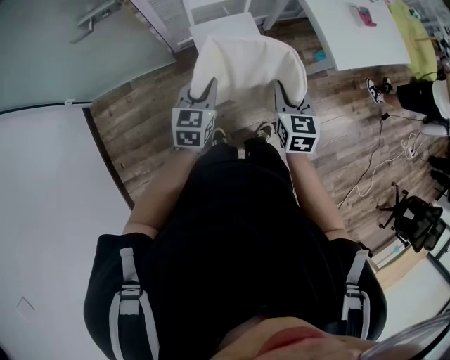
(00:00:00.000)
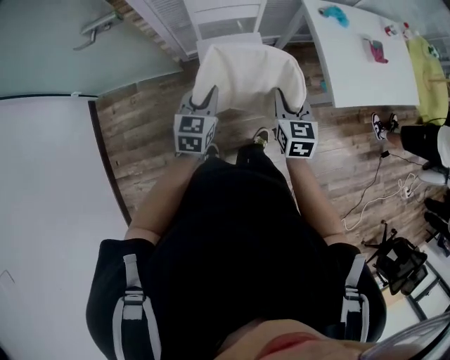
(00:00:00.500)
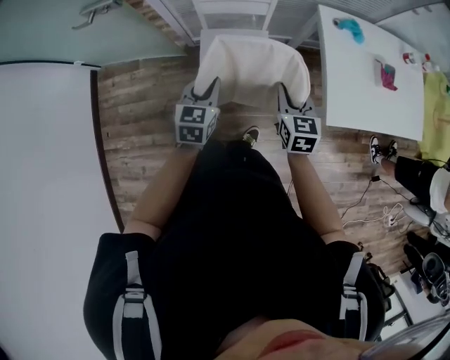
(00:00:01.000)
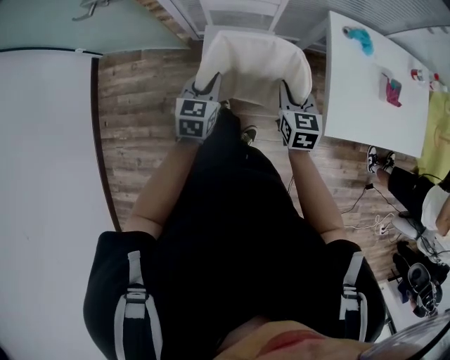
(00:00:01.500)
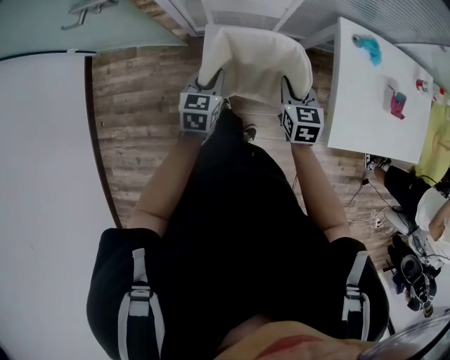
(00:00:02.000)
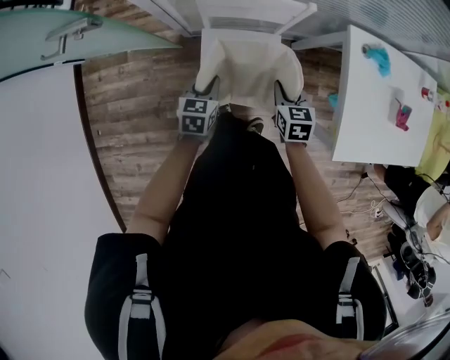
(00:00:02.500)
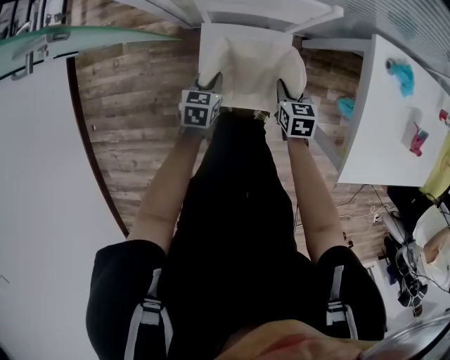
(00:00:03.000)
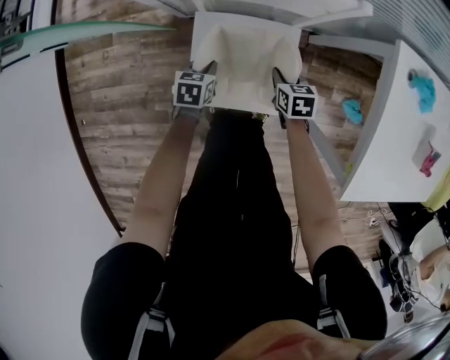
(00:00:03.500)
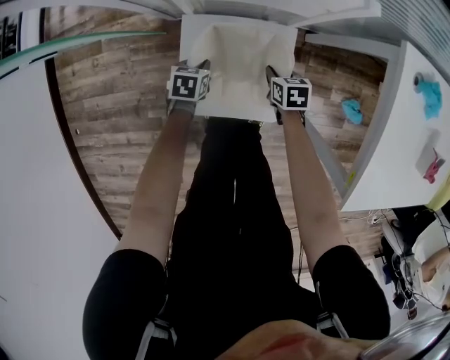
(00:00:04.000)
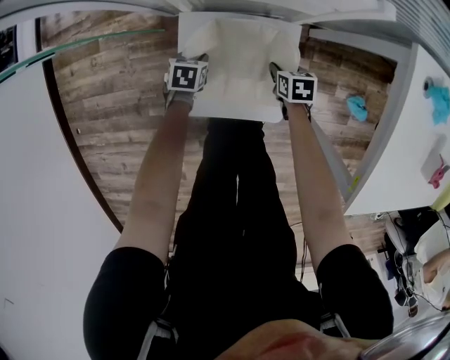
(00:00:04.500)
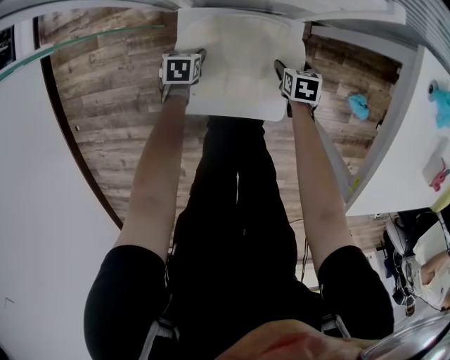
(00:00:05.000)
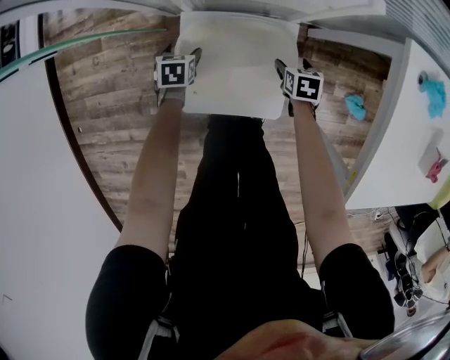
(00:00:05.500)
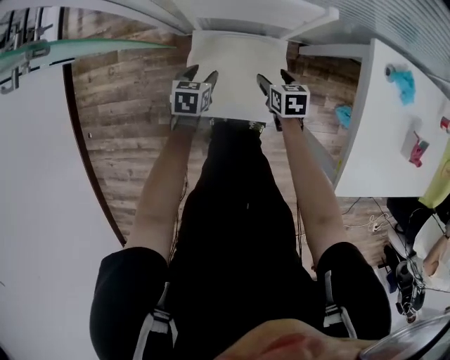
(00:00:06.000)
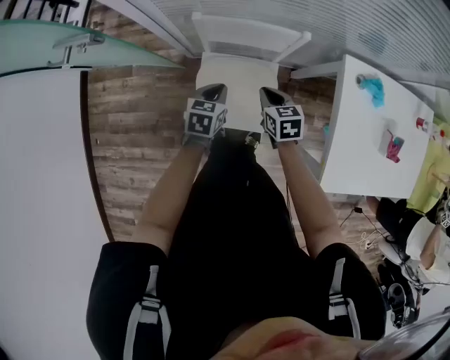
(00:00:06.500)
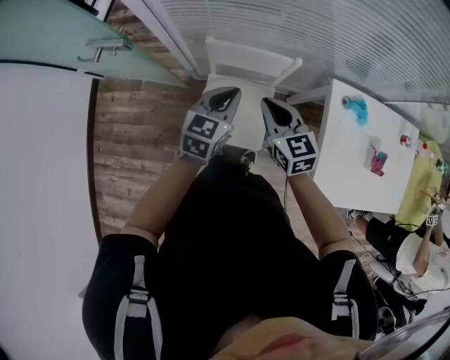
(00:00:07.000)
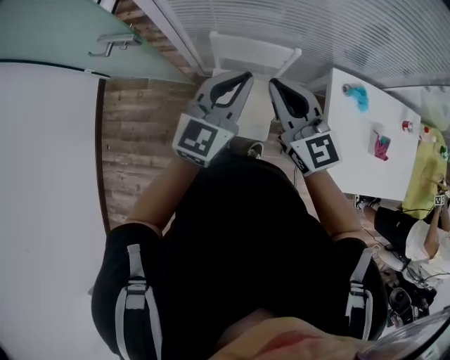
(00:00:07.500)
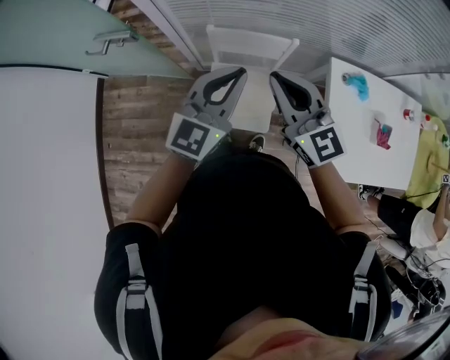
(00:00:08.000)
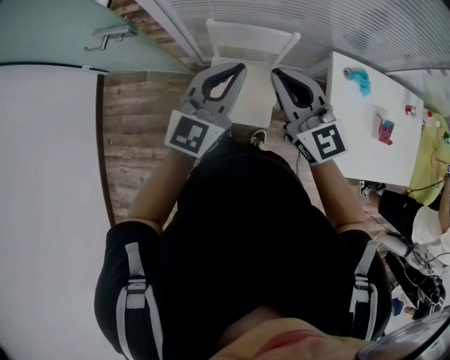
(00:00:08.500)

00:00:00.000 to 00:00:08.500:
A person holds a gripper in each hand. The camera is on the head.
00:00:00.000 to 00:00:02.000: Both grippers travel together forward, downward and to the right, some 30 cm. The left gripper turns by roughly 20 degrees; the right gripper turns by about 20 degrees.
00:00:02.000 to 00:00:04.000: The two grippers go some 40 cm downward. The right gripper swivels approximately 30 degrees. Meanwhile the left gripper rotates about 30 degrees.
00:00:04.000 to 00:00:06.500: Both grippers move upward, approximately 35 cm. The right gripper opens, then closes again. The left gripper opens, then closes once more.
00:00:06.500 to 00:00:08.500: Both grippers travel together upward, roughly 40 cm. The right gripper tilts its fingers some 40 degrees upward. Meanwhile the left gripper points its fingers some 40 degrees further upward.

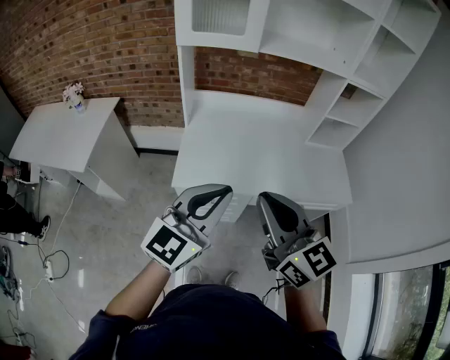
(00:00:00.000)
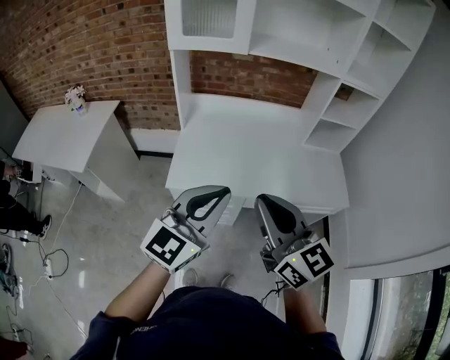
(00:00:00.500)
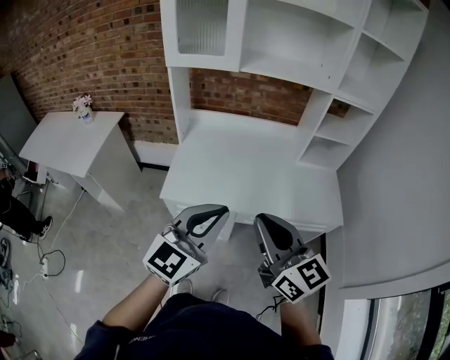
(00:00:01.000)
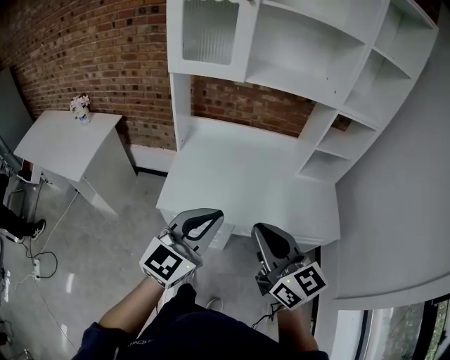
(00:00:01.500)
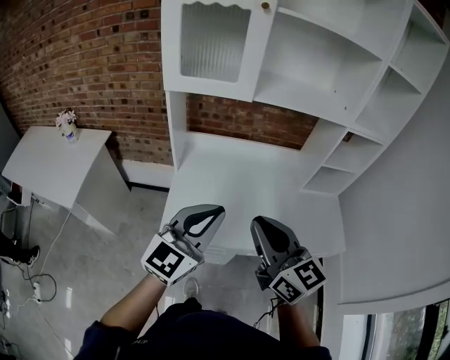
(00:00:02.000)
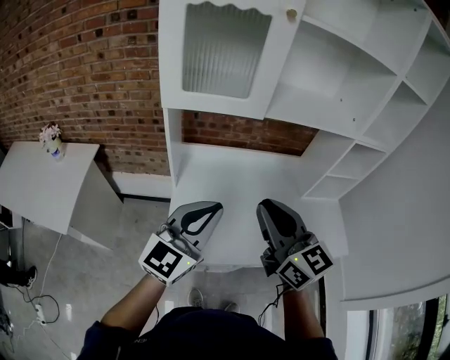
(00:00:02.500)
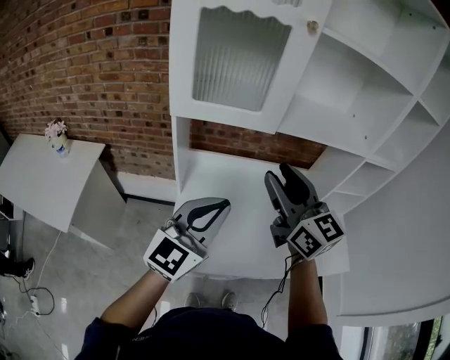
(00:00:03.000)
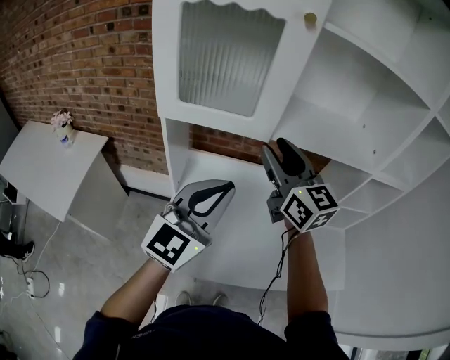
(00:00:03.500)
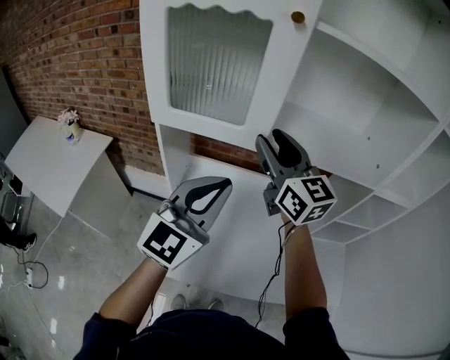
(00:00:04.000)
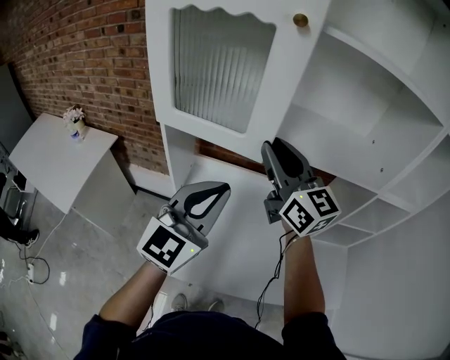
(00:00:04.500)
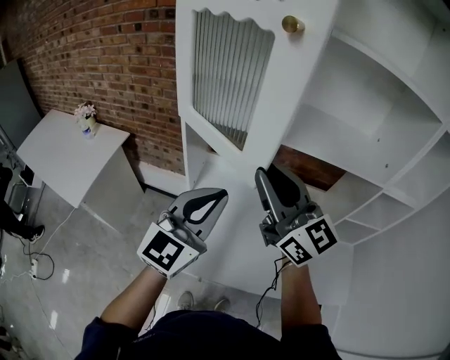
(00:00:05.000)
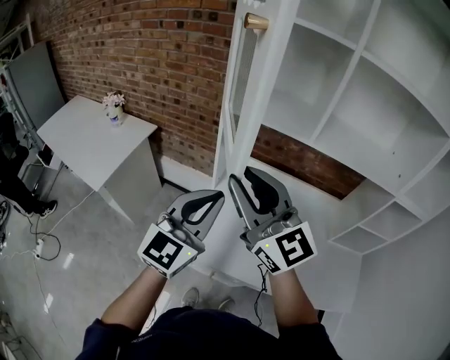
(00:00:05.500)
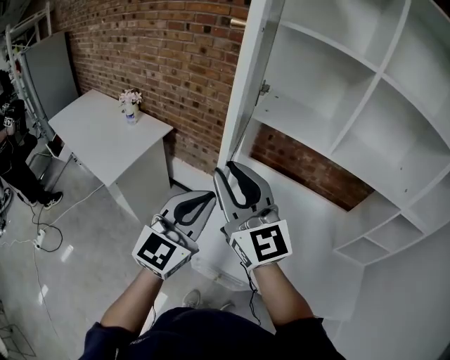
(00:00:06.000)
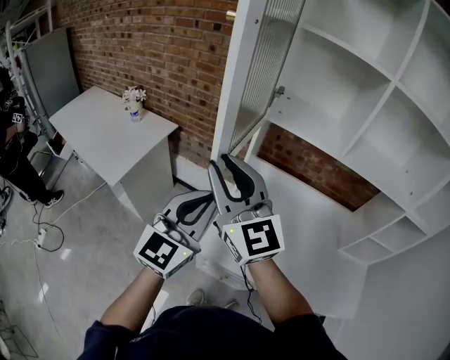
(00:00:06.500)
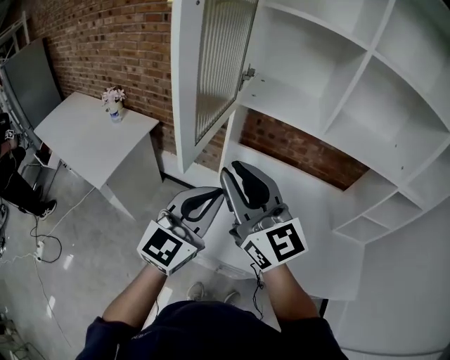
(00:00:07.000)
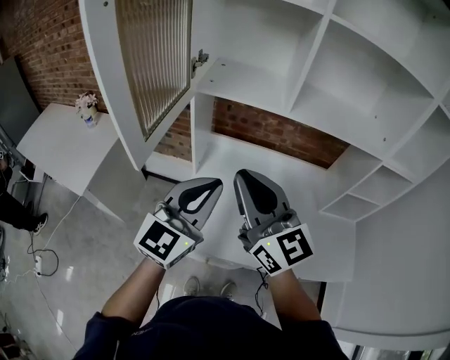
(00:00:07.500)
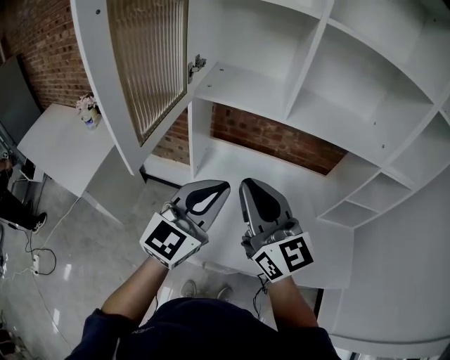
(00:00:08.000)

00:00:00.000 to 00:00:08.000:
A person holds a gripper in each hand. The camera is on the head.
00:00:00.000 to 00:00:02.000: Both grippers travel together forward, roughly 15 cm.
00:00:02.000 to 00:00:04.000: The left gripper is displaced forward by some 25 cm. The right gripper is displaced forward by roughly 35 cm, and opens its fingers.
00:00:04.000 to 00:00:06.000: Both grippers move to the left and backward, roughly 30 cm. The right gripper swivels about 20 degrees.
00:00:06.000 to 00:00:08.000: Both grippers travel together to the right, roughly 15 cm.

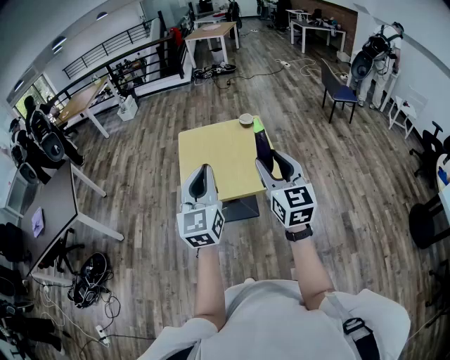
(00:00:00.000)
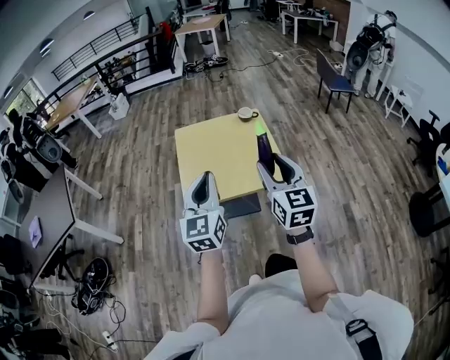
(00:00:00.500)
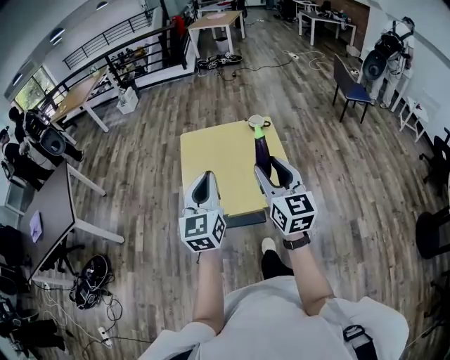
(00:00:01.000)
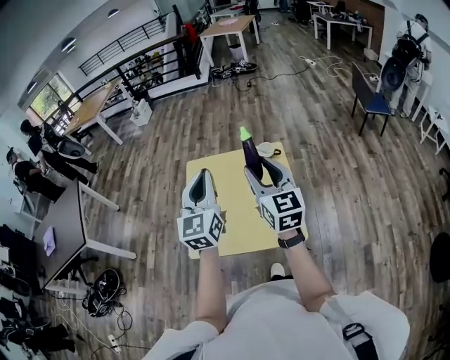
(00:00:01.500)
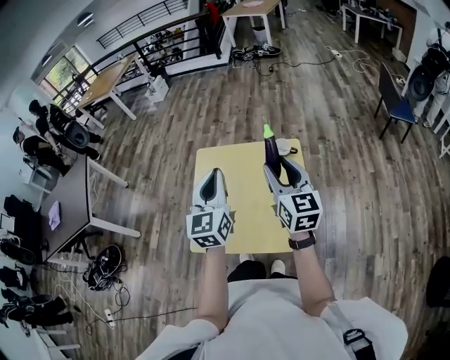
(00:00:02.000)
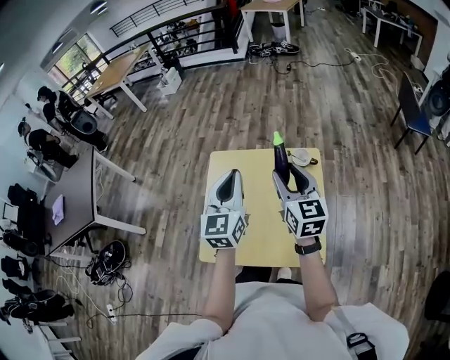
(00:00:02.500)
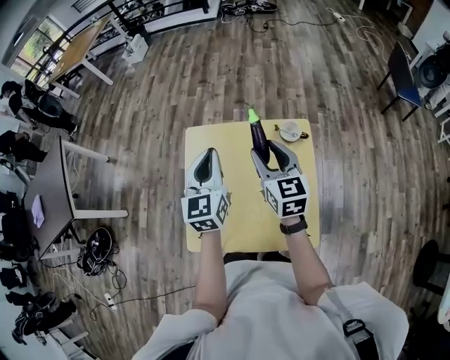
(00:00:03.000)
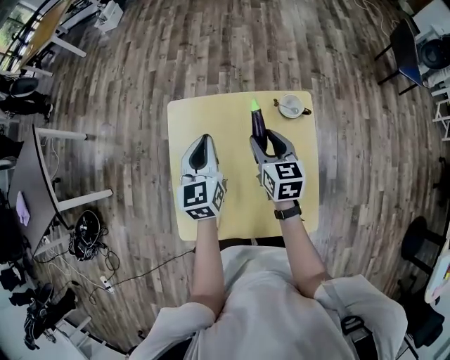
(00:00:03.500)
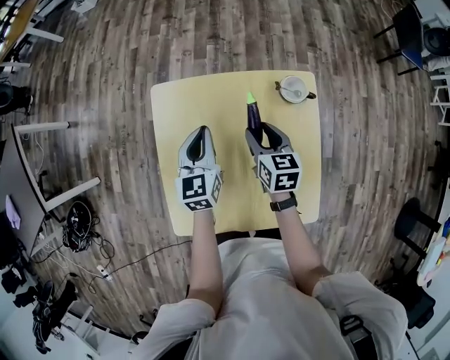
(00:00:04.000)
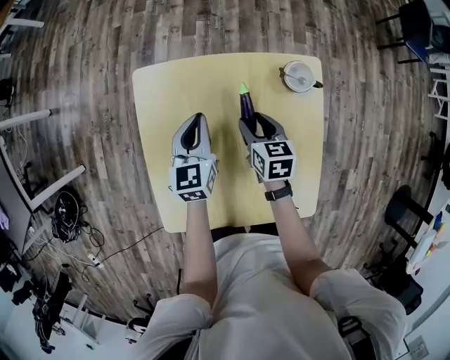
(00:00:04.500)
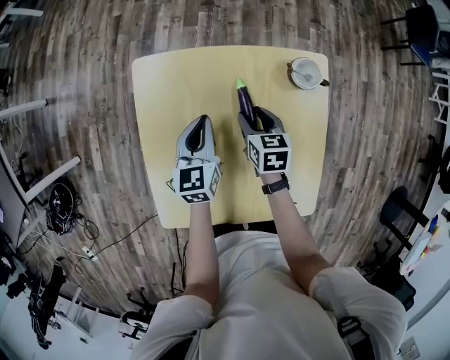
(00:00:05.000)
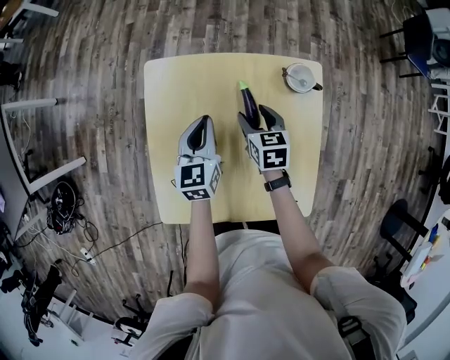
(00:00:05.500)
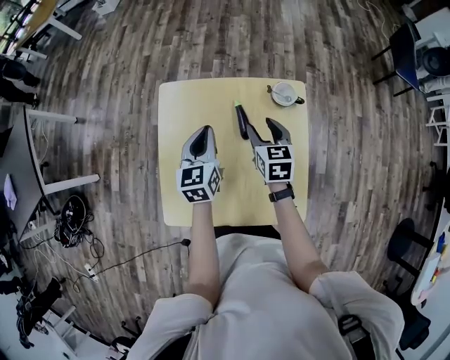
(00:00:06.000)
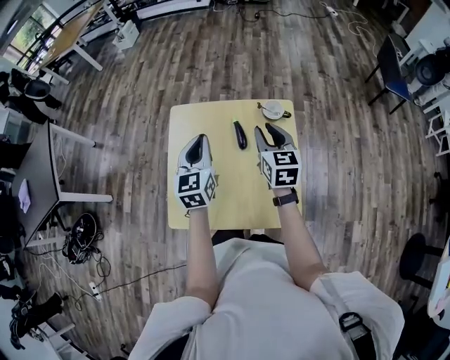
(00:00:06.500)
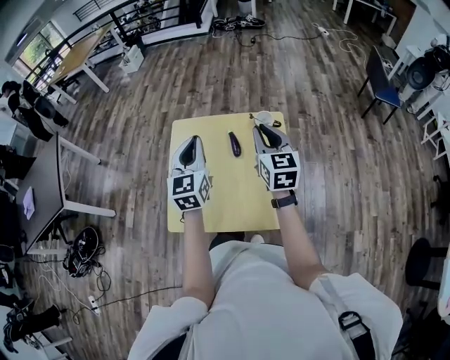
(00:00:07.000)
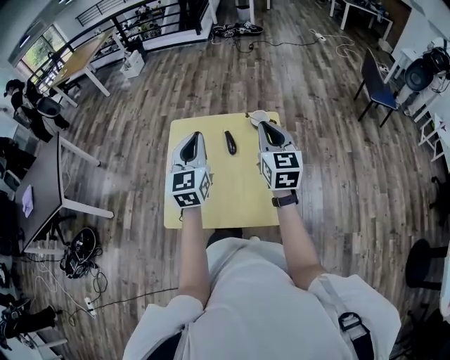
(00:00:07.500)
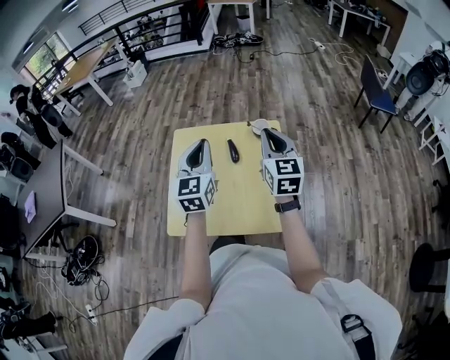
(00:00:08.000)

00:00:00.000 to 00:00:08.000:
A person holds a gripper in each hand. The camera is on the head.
00:00:00.000 to 00:00:02.000: The two grippers go roughly 35 cm forward.
00:00:02.000 to 00:00:04.000: The grippers both shift downward and forward by roughly 35 cm. The left gripper changes its angle by some 20 degrees, while the right gripper tips its fingers downward by some 30 degrees.
00:00:04.000 to 00:00:06.000: The right gripper moves about 10 cm downward and comes back. Meanwhile the left gripper reaches some 10 cm downward, then returns.
00:00:06.000 to 00:00:08.000: Both grippers travel together upward and backward, some 25 cm. The right gripper changes its angle by some 30 degrees, and closes its fingers, while the left gripper rotates some 20 degrees.

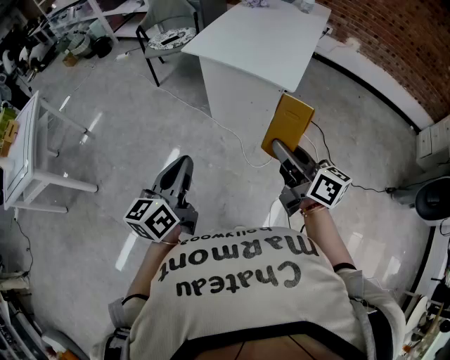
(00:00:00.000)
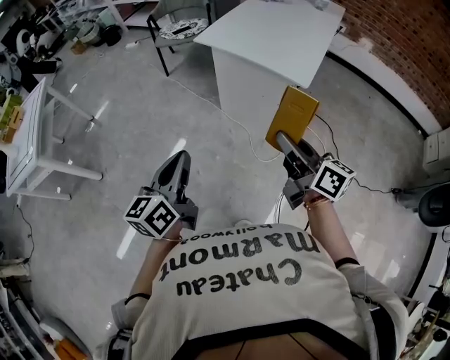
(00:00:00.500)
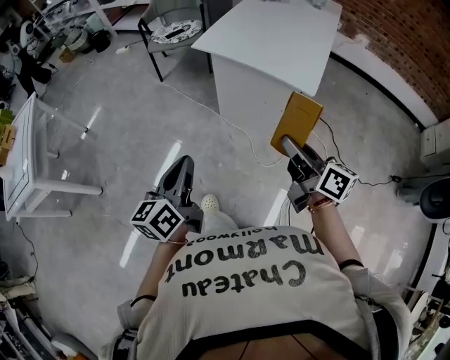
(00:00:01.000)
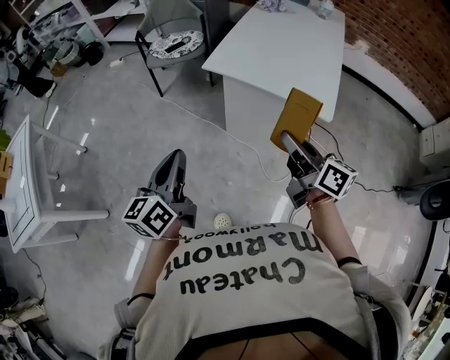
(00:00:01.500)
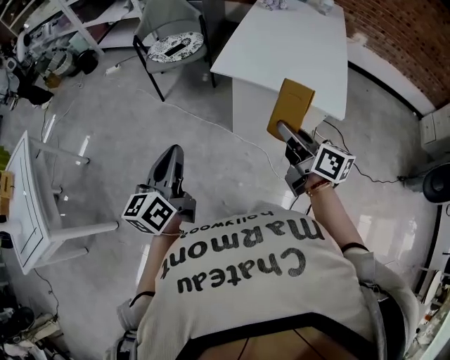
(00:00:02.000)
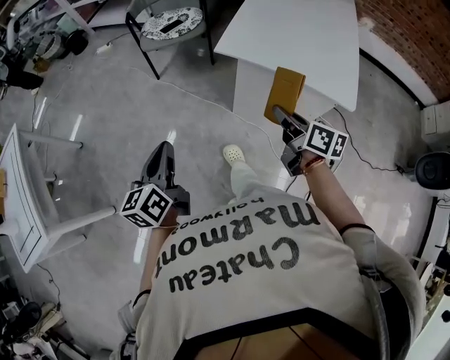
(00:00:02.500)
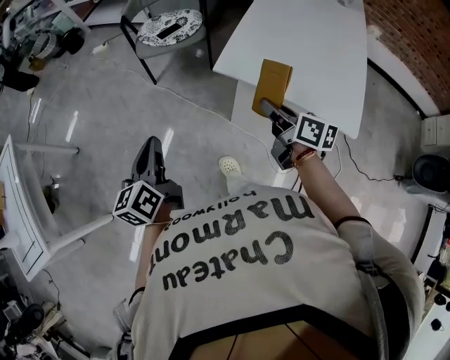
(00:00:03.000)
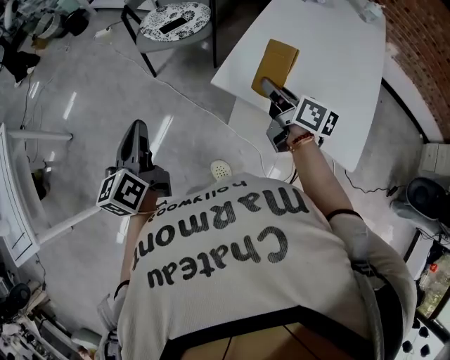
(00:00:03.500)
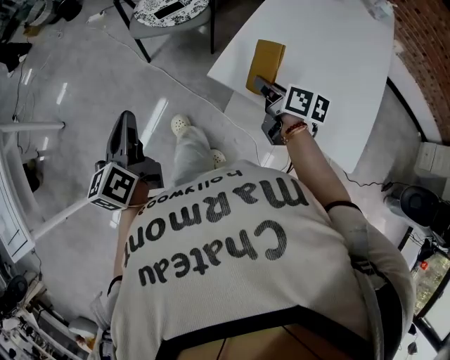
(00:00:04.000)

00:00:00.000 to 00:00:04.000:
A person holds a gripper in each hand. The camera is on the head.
00:00:00.000 to 00:00:02.000: The two grippers go approximately 35 cm forward and to the left.
00:00:02.000 to 00:00:04.000: The right gripper travels forward and downward by approximately 40 cm, and rotates about 30 degrees. Meanwhile the left gripper heads forward, covering approximately 30 cm, and changes its angle by about 20 degrees.
